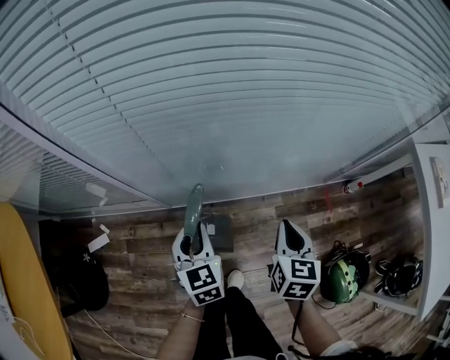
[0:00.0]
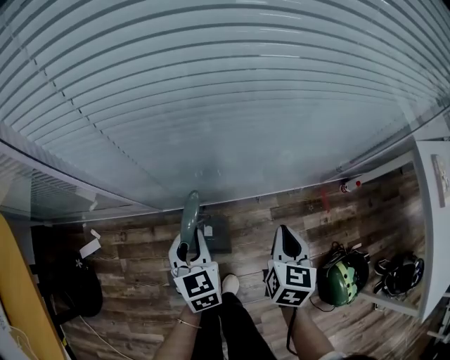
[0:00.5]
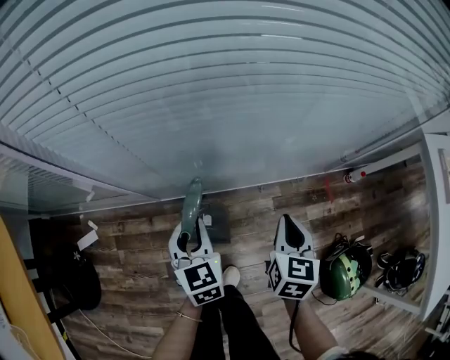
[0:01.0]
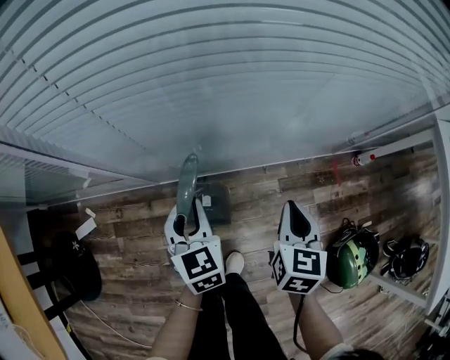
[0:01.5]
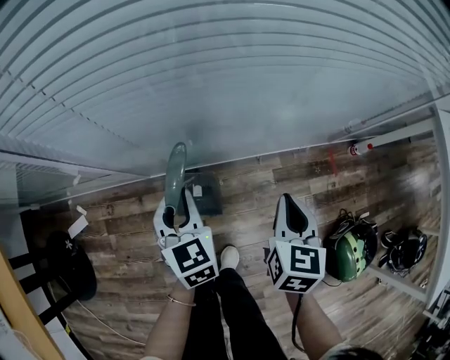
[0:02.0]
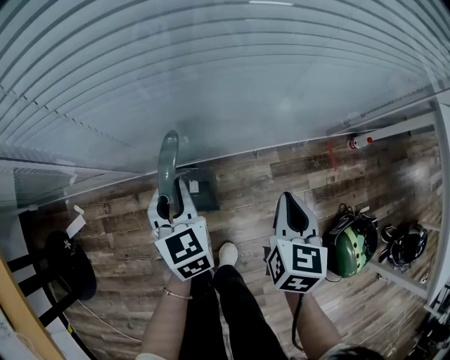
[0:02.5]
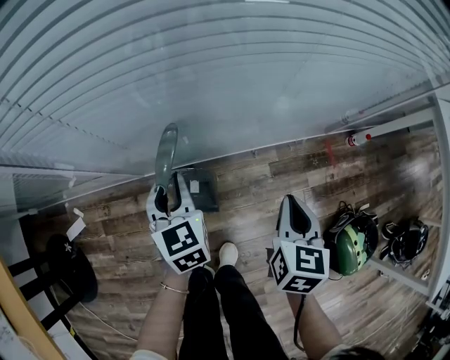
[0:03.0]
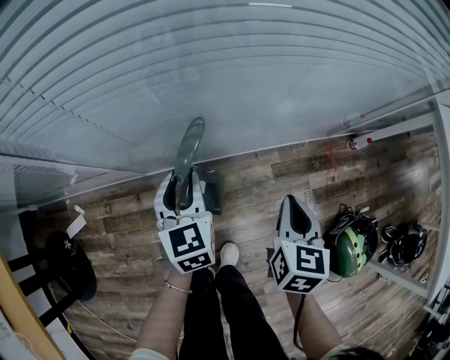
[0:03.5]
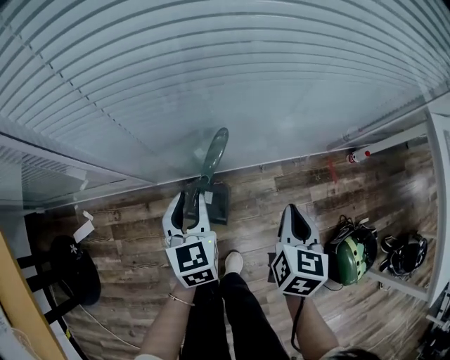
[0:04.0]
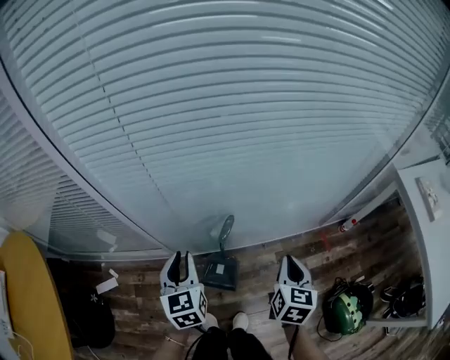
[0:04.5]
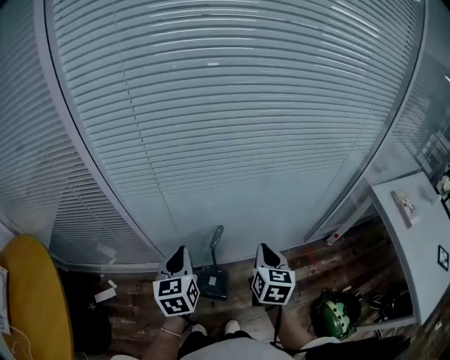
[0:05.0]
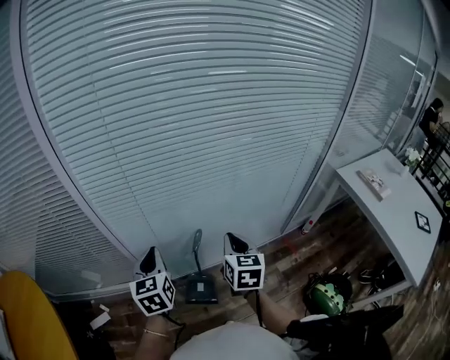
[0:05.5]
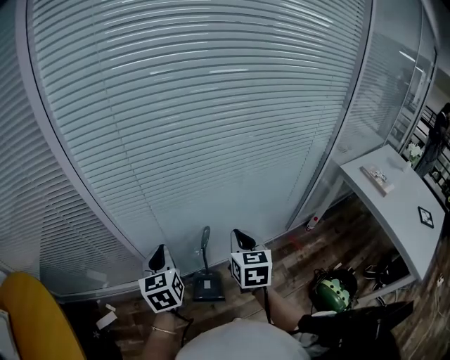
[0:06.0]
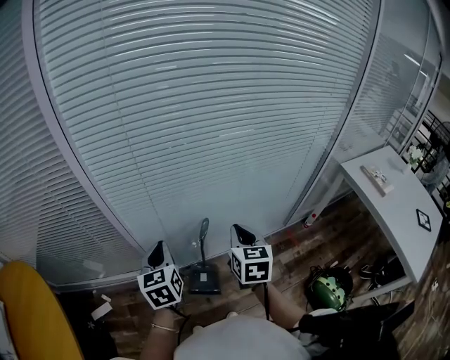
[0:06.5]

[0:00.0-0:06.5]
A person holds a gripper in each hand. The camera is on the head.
0:00.0 to 0:02.0: The two grippers go approximately 10 cm downward.
0:02.0 to 0:04.5: The grippers both shift upward by about 15 cm.
0:04.5 to 0:06.5: The left gripper shifts about 10 cm upward. The right gripper heads upward and to the left, covering some 15 cm.

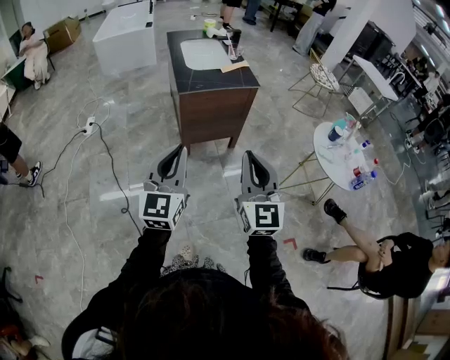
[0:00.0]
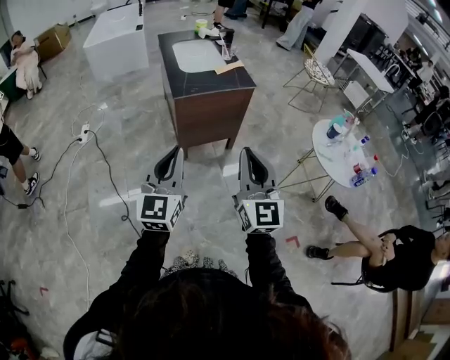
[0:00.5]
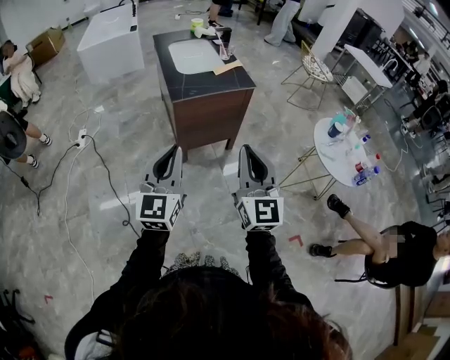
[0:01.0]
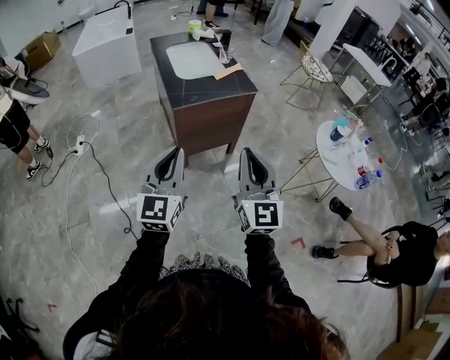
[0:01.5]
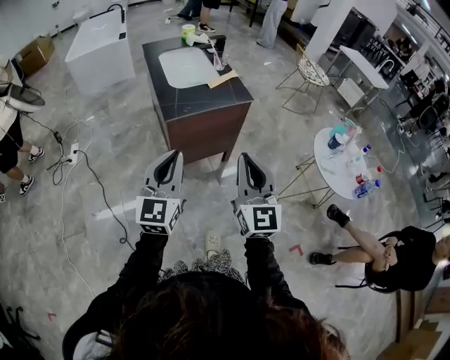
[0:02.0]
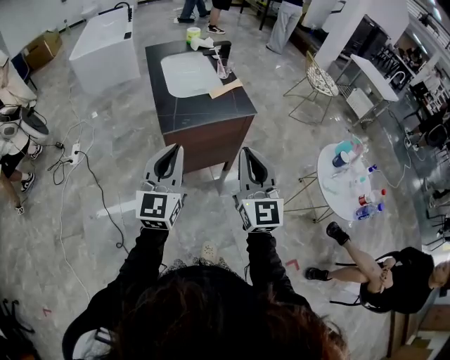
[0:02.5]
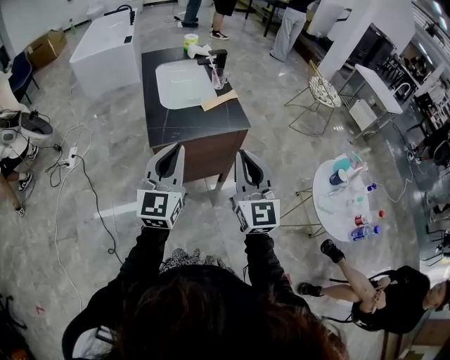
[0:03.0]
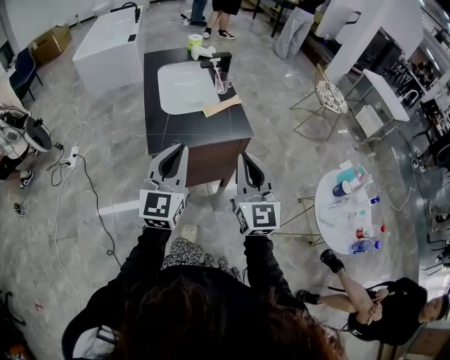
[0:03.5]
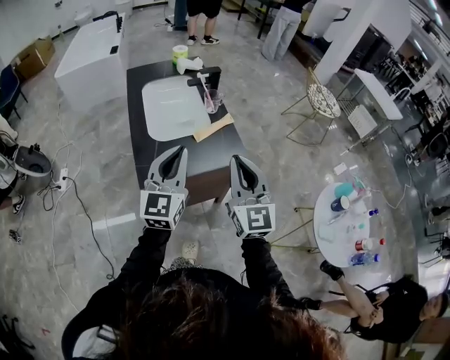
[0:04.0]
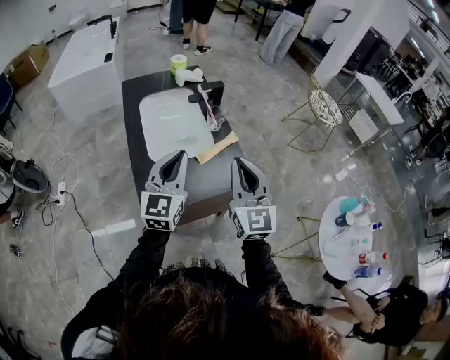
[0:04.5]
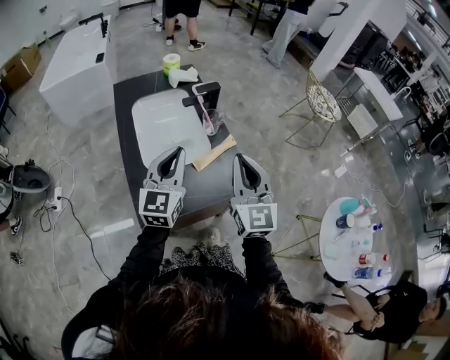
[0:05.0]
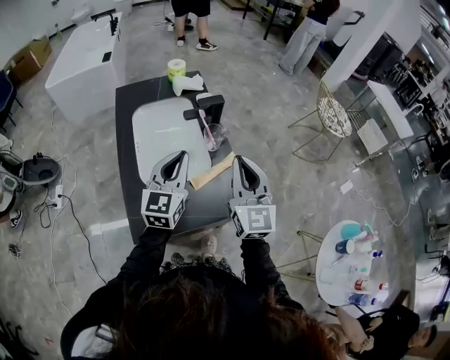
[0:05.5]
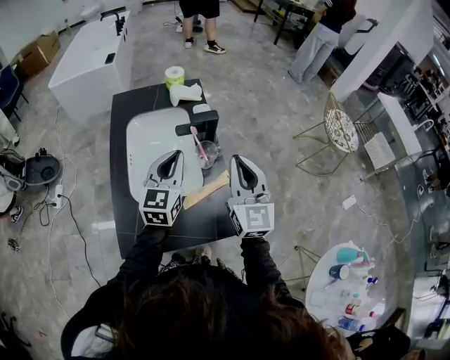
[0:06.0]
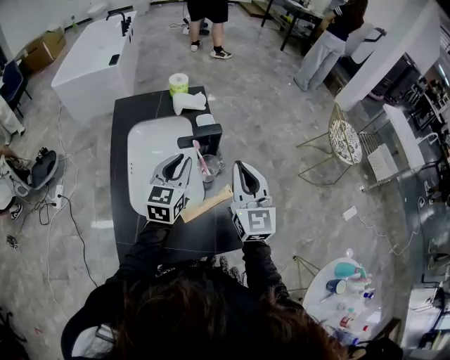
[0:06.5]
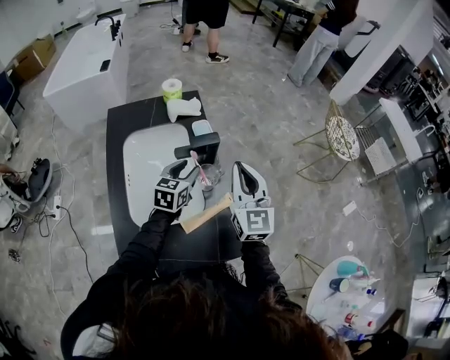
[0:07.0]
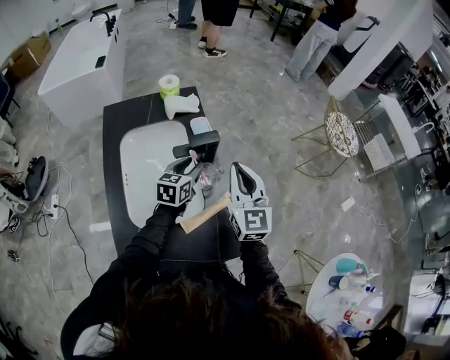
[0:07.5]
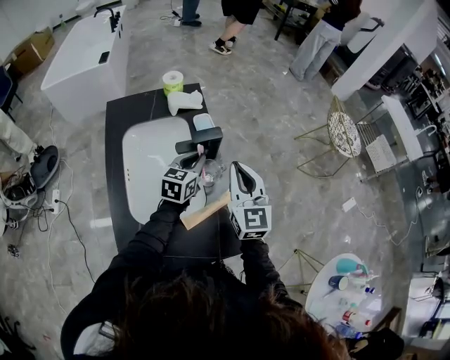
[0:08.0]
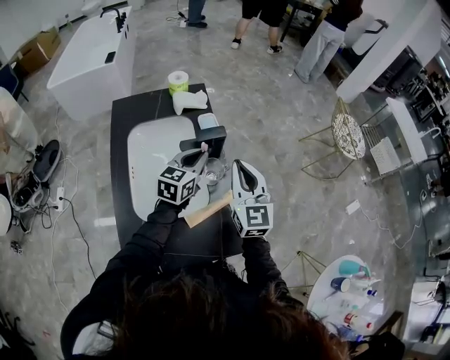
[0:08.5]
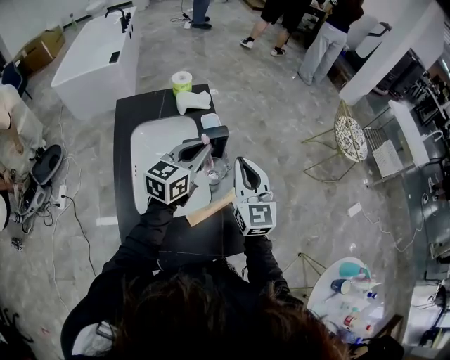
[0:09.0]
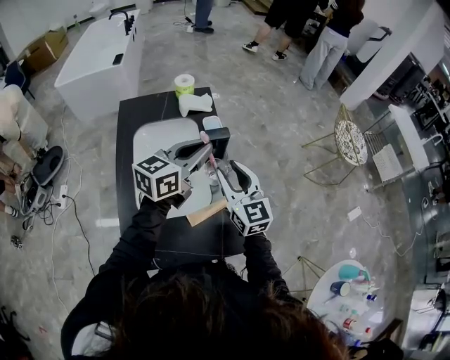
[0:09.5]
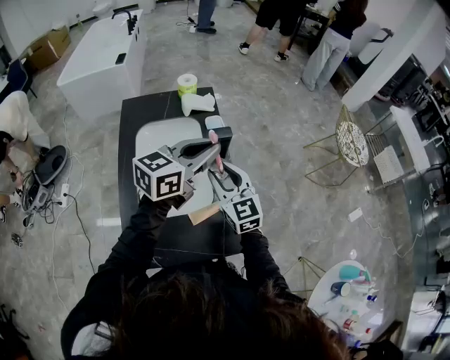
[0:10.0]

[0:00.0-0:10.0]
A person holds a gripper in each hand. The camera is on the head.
0:00.0 to 0:02.0: Both grippers travel together forward, approximately 15 cm.
0:02.0 to 0:04.0: The two grippers go about 35 cm forward.
0:04.0 to 0:06.0: The grippers both shift forward by approximately 30 cm.
0:06.0 to 0:08.0: The right gripper is displaced forward by approximately 10 cm. The left gripper travels forward and downward by roughly 15 cm, turns by approximately 20 degrees, and opens and closes again.
0:08.0 to 0:10.0: The right gripper moves to the left, some 5 cm, and opens up, while the left gripper heads upward, covering approximately 20 cm, and turns by approximately 20 degrees.

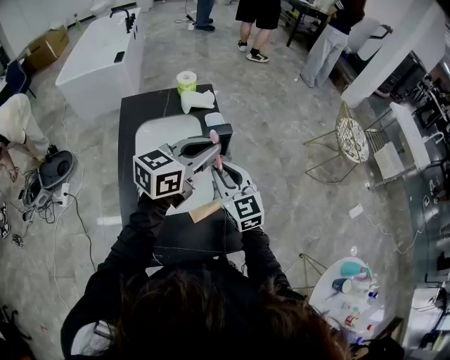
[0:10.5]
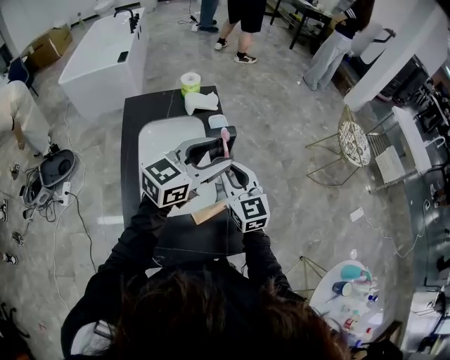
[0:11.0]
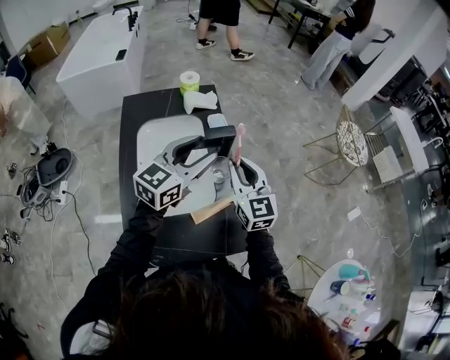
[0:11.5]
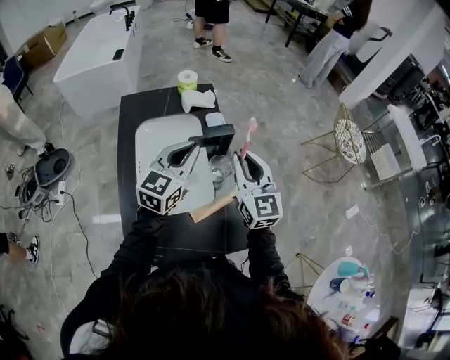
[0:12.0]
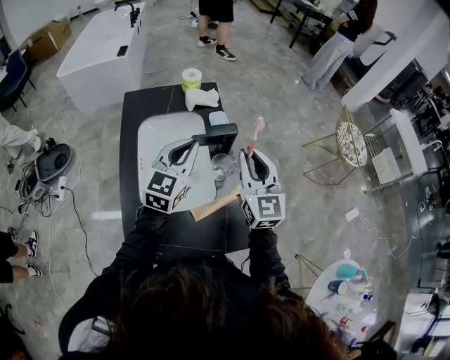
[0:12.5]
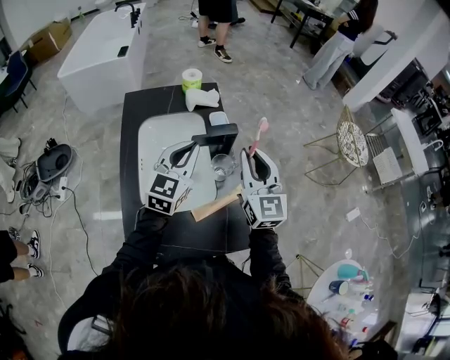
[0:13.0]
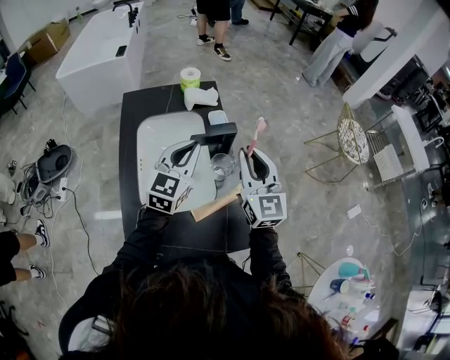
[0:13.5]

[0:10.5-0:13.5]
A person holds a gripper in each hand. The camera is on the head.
0:10.5 to 0:12.0: The right gripper is displaced upward by roughly 5 cm; the left gripper travels to the left by roughly 5 cm, swivels roughly 30 degrees, and opens, then closes once more.
0:12.0 to 0:13.5: There are only small adjustments of the grippers.

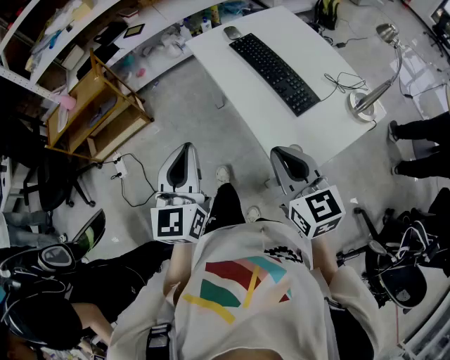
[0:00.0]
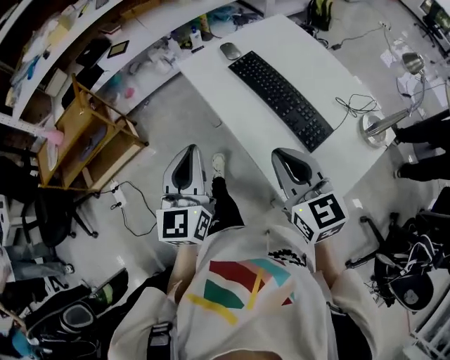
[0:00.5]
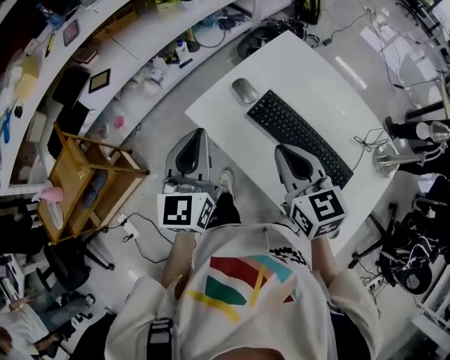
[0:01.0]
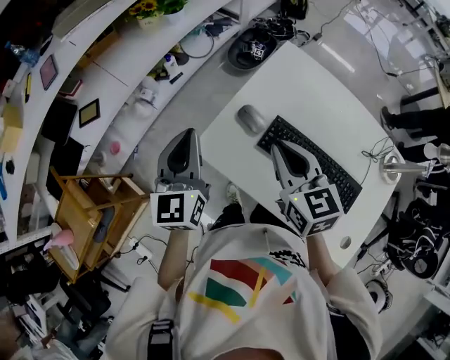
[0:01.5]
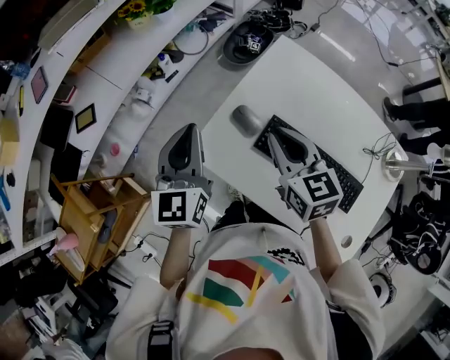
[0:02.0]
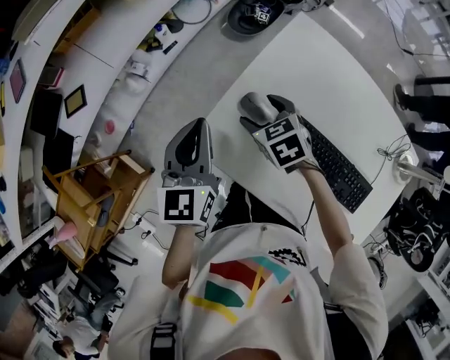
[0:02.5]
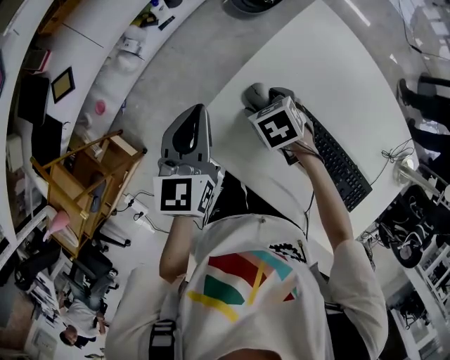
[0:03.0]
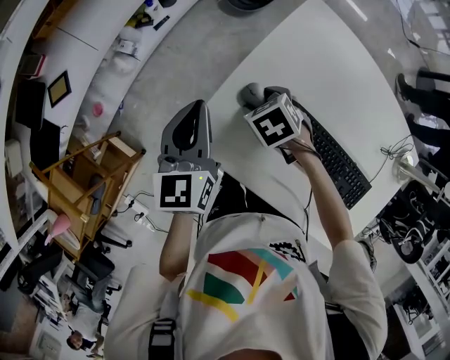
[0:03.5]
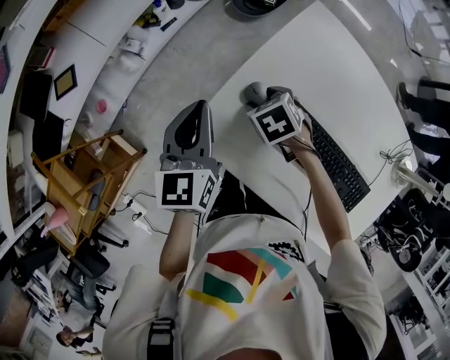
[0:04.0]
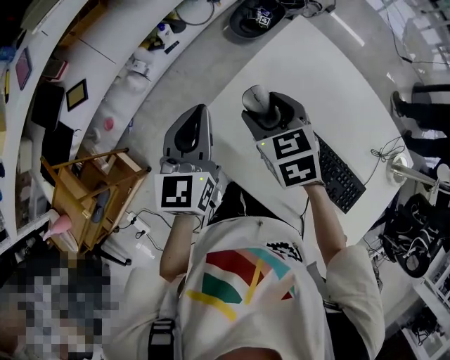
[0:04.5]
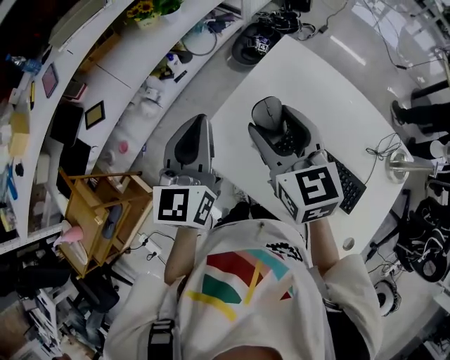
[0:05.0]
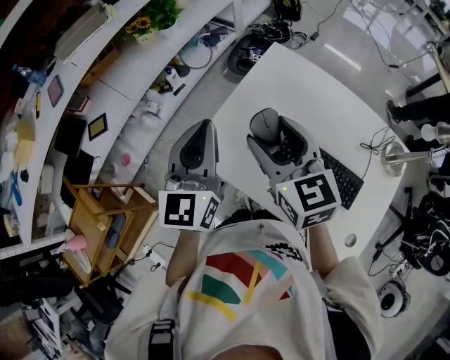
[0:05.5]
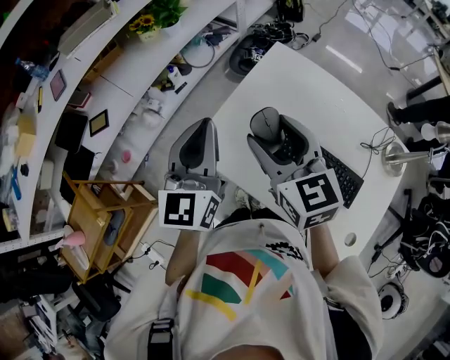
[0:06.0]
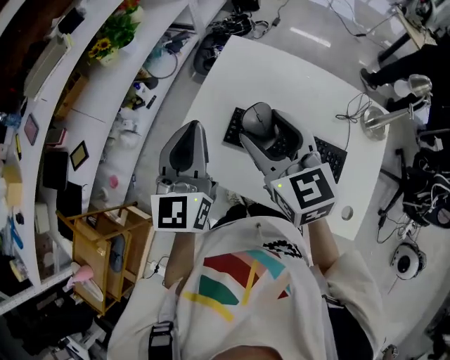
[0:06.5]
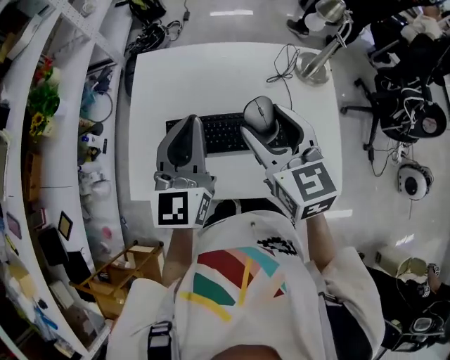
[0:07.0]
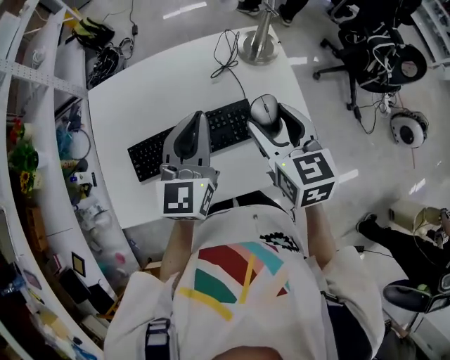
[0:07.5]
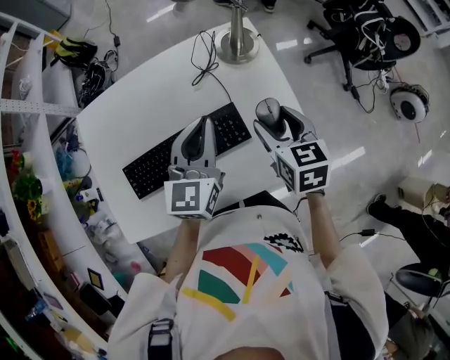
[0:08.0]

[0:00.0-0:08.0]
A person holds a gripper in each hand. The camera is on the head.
0:00.0 to 0:02.0: Both grippers are carried forward, about 60 cm. The left gripper swivels roughly 20 degrees, while the right gripper swivels roughly 30 degrees.
0:02.0 to 0:04.0: The left gripper travels downward and forward by about 10 cm, while the right gripper moves downward and forward, some 25 cm, tilts its fingers some 40 degrees downward, and opens up.
0:04.0 to 0:06.0: The left gripper moves upward and backward, approximately 20 cm, and turns by about 20 degrees. The right gripper goes some 35 cm upward and backward, and points its fingers approximately 50 degrees further upward.
0:06.0 to 0:08.0: Both grippers are carried roughly 50 cm. The right gripper rotates approximately 70 degrees. The left gripper turns by about 60 degrees.
